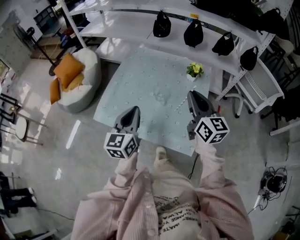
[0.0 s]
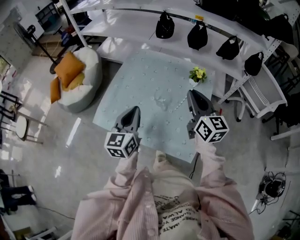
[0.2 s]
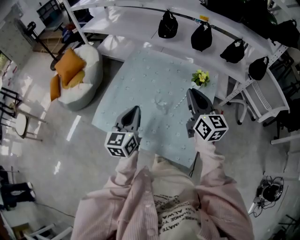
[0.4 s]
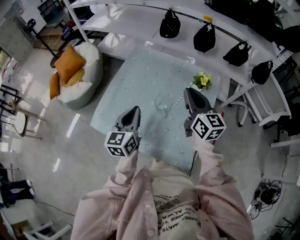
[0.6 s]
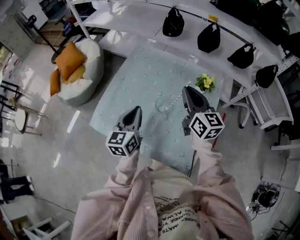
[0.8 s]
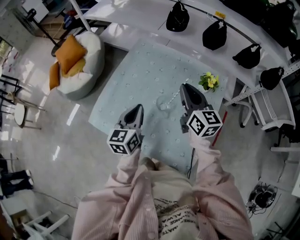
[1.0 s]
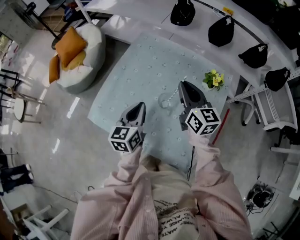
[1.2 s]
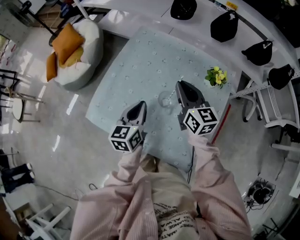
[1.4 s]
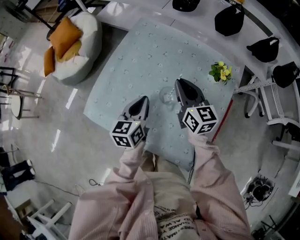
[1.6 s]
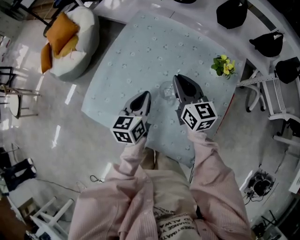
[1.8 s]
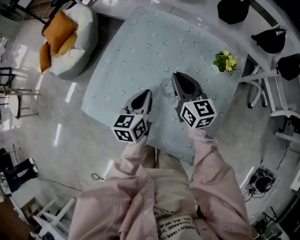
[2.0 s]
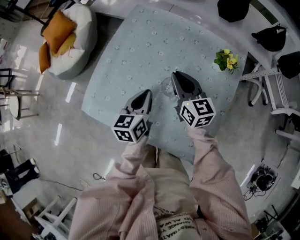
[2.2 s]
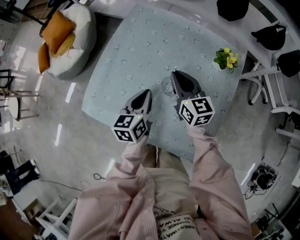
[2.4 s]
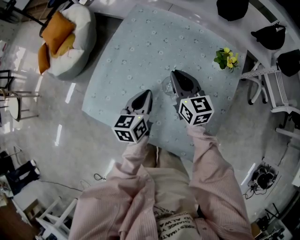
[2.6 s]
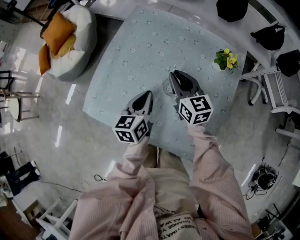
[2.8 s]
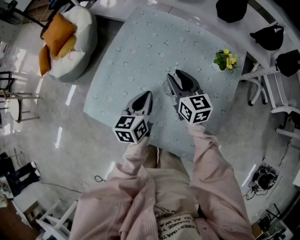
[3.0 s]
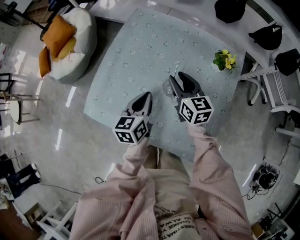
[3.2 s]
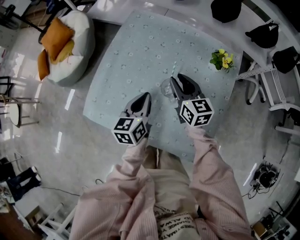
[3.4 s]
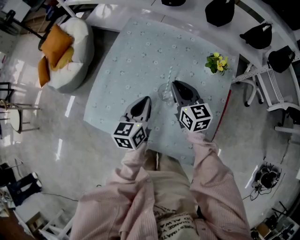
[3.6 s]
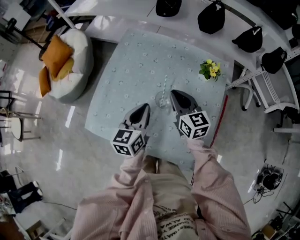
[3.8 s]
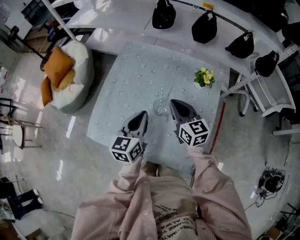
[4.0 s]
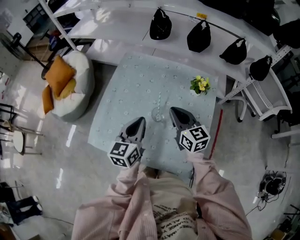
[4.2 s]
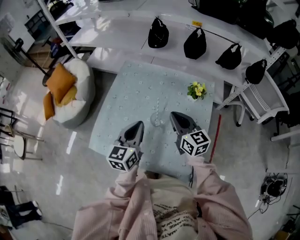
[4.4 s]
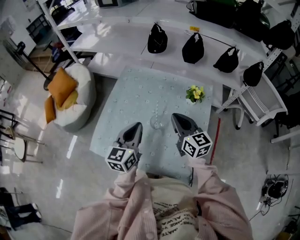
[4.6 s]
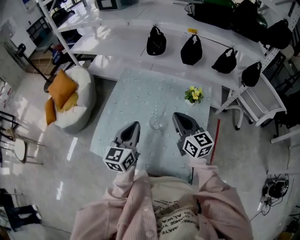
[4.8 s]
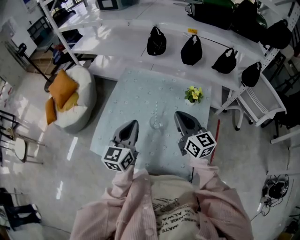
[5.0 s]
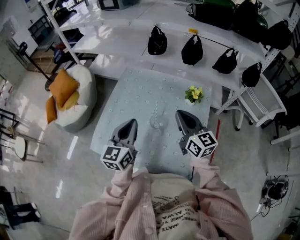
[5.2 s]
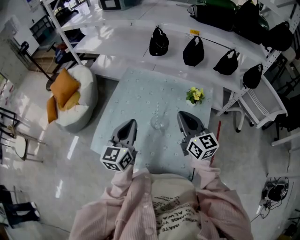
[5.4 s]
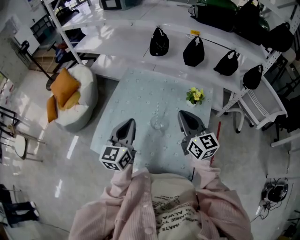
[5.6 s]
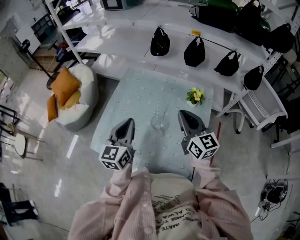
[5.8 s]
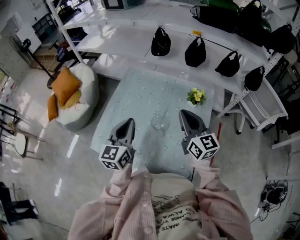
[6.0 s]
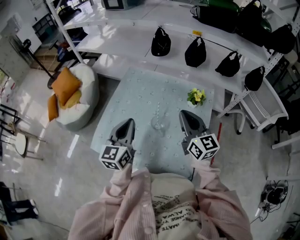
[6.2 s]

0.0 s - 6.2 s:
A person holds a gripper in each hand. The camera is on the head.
0.0 s - 1.6 s: The grippers both shift forward and downward by about 25 cm. The left gripper changes its angle by roughly 20 degrees.
1.6 s - 3.2 s: The right gripper heads downward, covering approximately 5 cm, and opens up.
3.2 s - 4.6 s: The right gripper is displaced upward, backward and to the right by some 15 cm, and closes up. Meanwhile the left gripper travels upward by some 15 cm, and rotates roughly 20 degrees.
4.6 s - 6.2 s: The right gripper moves upward, some 5 cm.

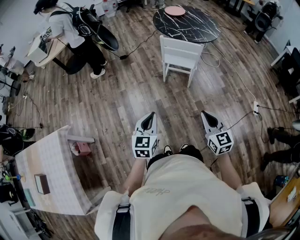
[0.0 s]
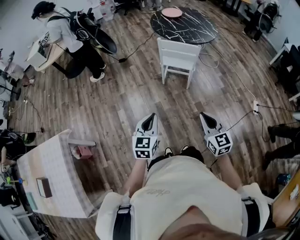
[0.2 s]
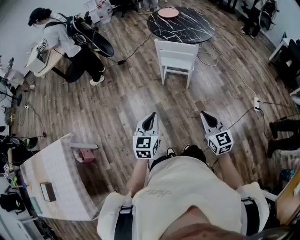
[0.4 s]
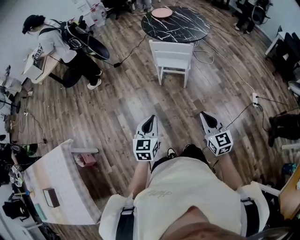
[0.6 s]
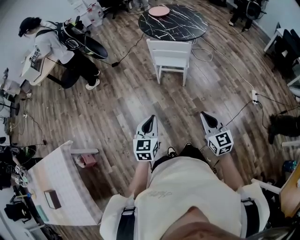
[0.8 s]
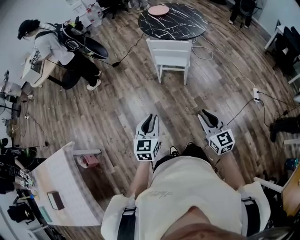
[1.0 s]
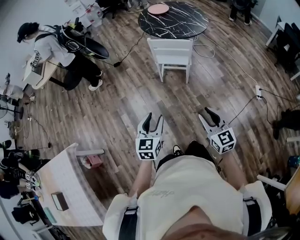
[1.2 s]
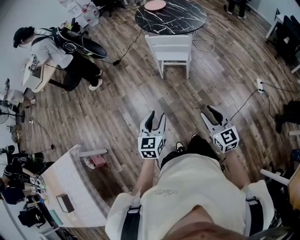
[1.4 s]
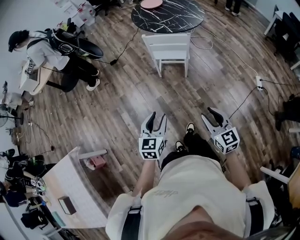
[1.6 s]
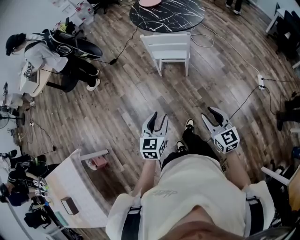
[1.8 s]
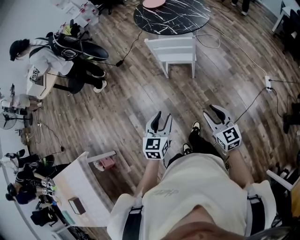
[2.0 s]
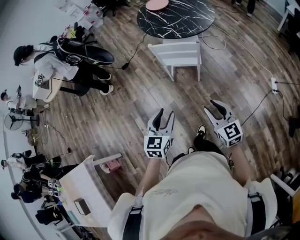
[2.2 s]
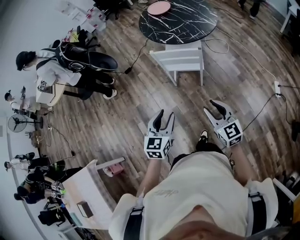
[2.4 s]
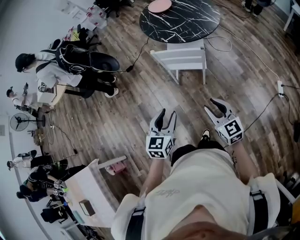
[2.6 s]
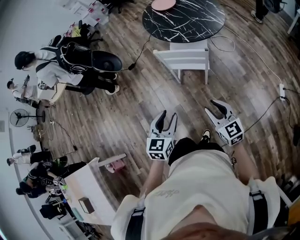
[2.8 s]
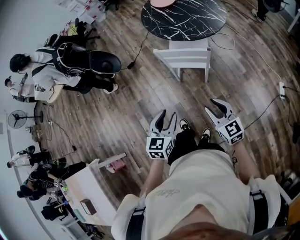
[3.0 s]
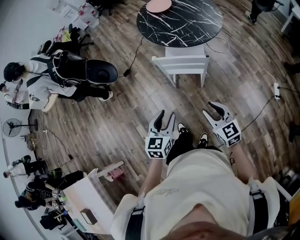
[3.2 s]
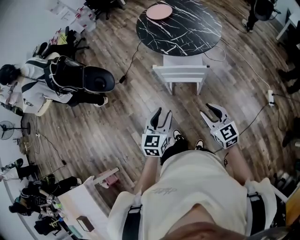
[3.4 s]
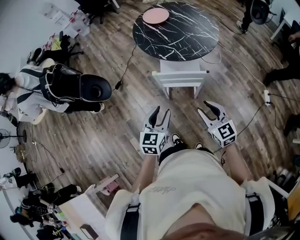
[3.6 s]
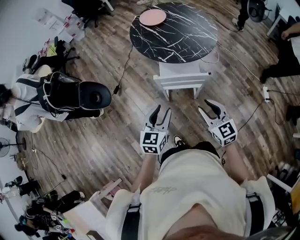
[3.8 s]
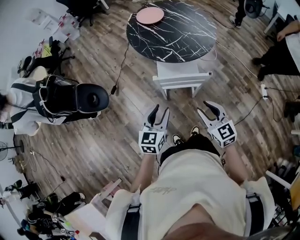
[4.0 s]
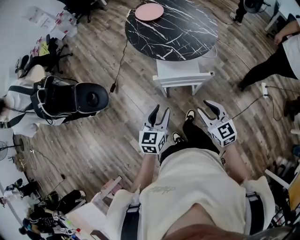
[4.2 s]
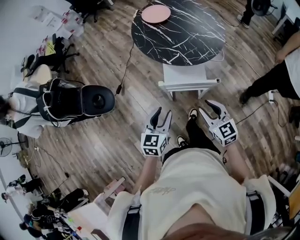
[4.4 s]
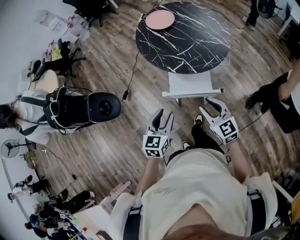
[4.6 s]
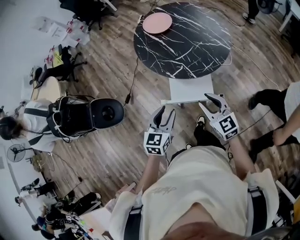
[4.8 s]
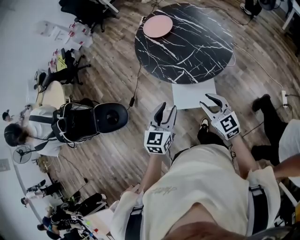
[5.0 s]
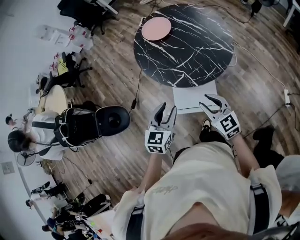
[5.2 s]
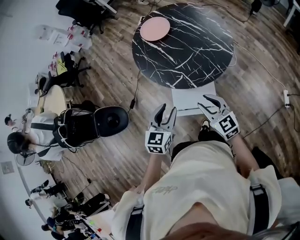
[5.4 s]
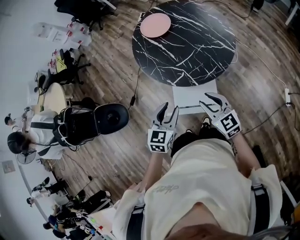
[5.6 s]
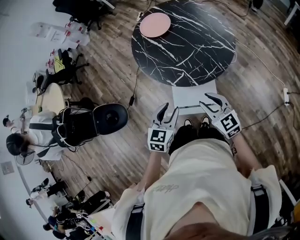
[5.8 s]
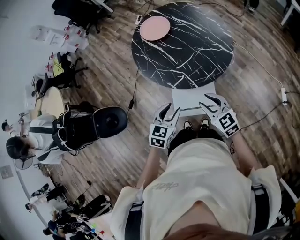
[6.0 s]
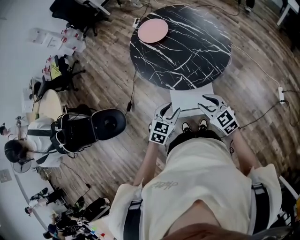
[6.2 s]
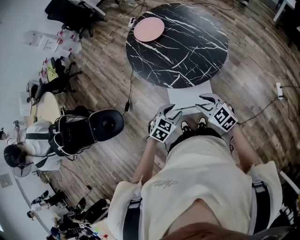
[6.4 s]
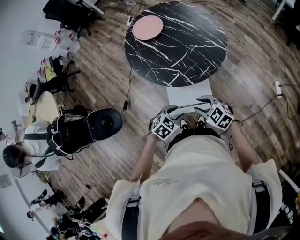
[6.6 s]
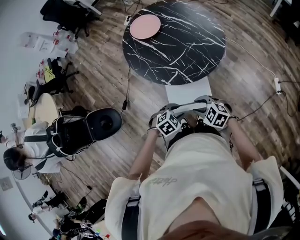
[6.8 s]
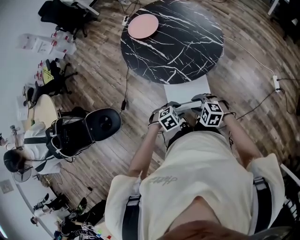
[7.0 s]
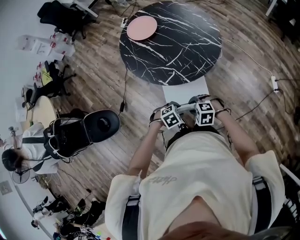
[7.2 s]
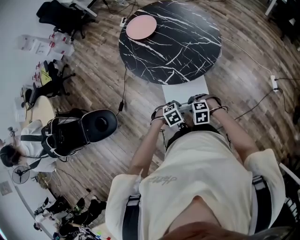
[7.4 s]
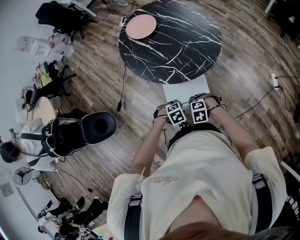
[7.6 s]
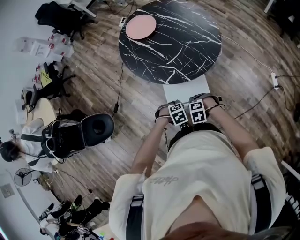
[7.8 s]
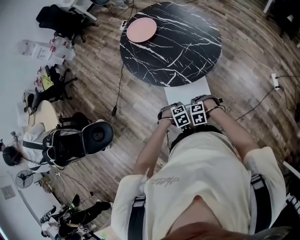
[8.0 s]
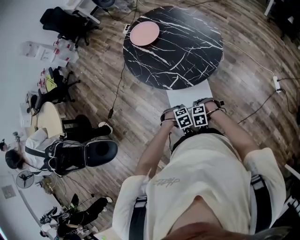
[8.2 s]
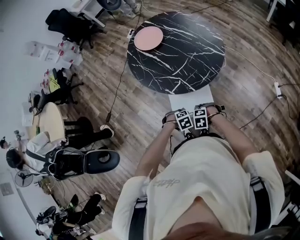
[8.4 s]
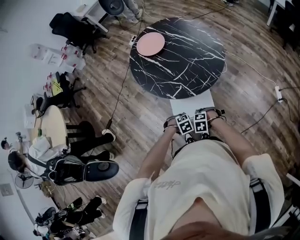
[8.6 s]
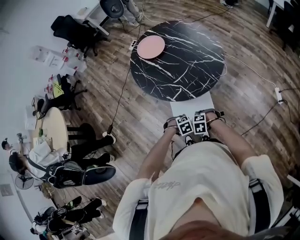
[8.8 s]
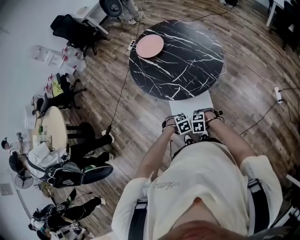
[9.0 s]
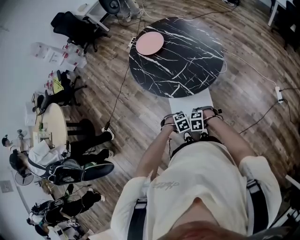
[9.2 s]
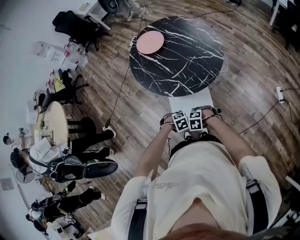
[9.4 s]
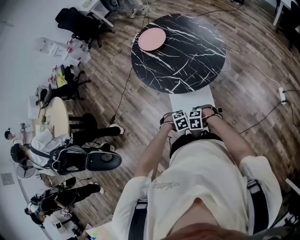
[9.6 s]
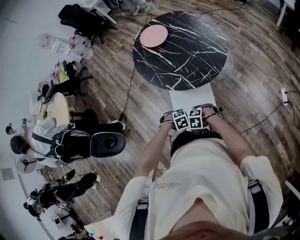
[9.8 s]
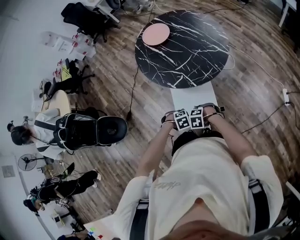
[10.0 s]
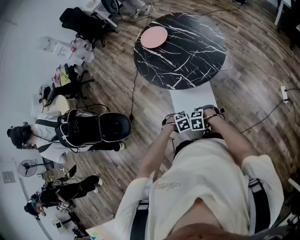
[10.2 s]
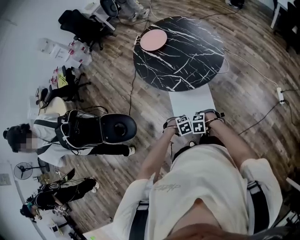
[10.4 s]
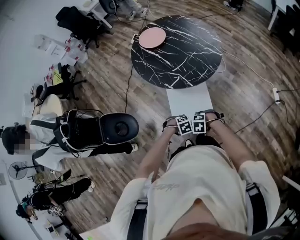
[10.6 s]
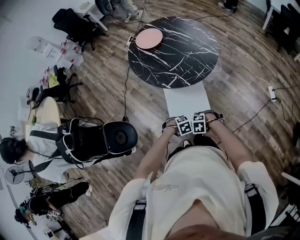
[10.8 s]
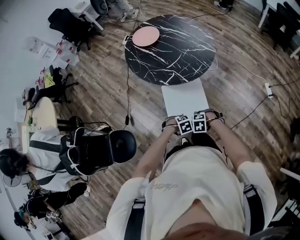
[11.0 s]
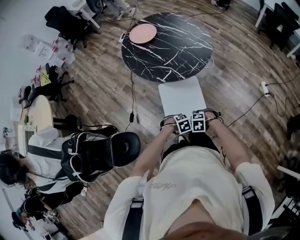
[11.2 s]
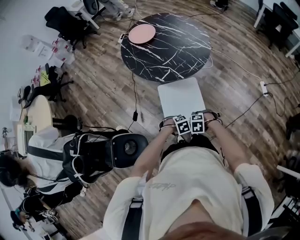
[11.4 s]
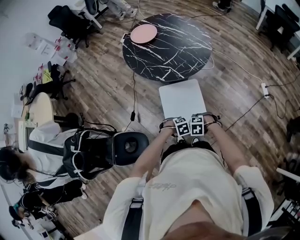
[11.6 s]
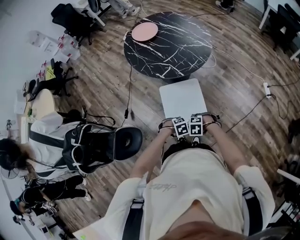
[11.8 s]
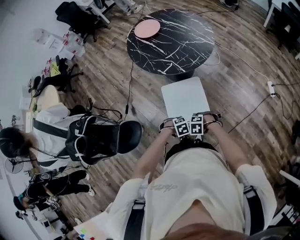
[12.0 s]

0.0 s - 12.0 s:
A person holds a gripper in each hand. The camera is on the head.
0.0 s - 1.6 s: The left gripper shifts roughly 5 cm to the right, and opens up. Meanwhile the right gripper opens up.
1.6 s - 3.0 s: Both grippers move forward, some 25 cm.
3.0 s - 4.4 s: The grippers both shift forward by some 25 cm.
4.4 s - 6.0 s: The right gripper shifts roughly 20 cm forward; the left gripper moves forward and to the right, roughly 20 cm.
6.0 s - 7.6 s: Both grippers move downward, about 20 cm. The left gripper angles its fingers downward, by about 40 degrees. The right gripper points its fingers about 50 degrees further downward.
7.6 s - 9.0 s: There are only small adjustments of the grippers.
9.0 s - 10.4 s: The right gripper ends up some 10 cm from where it was. The left gripper moves about 10 cm.
10.4 s - 12.0 s: The right gripper moves some 15 cm. The left gripper changes place by some 15 cm.

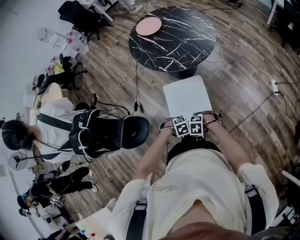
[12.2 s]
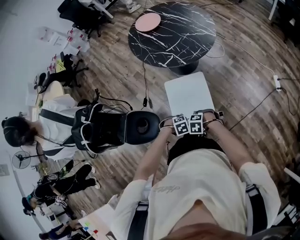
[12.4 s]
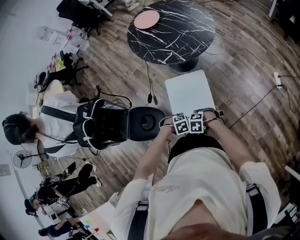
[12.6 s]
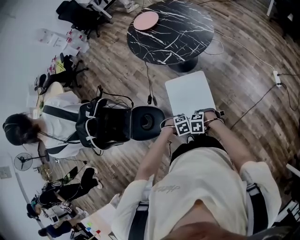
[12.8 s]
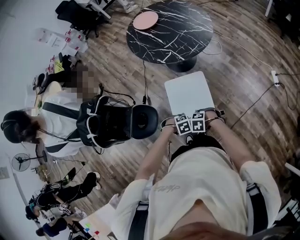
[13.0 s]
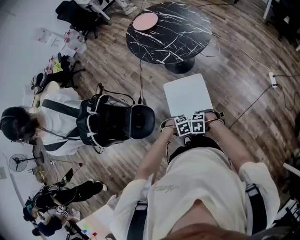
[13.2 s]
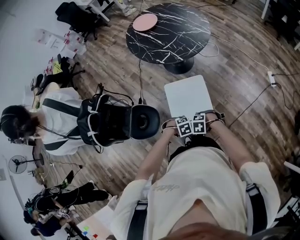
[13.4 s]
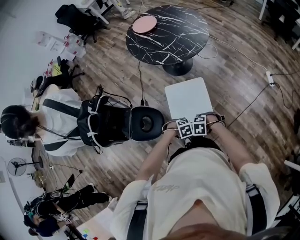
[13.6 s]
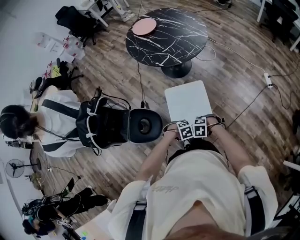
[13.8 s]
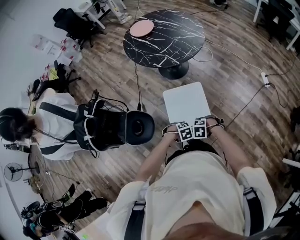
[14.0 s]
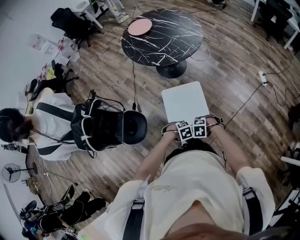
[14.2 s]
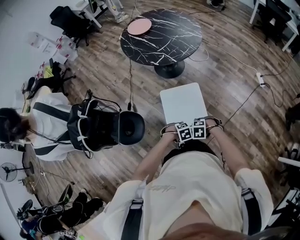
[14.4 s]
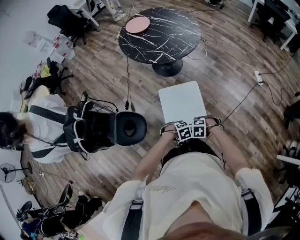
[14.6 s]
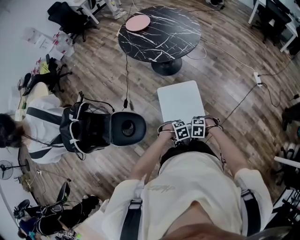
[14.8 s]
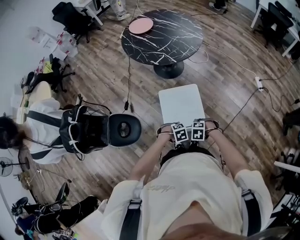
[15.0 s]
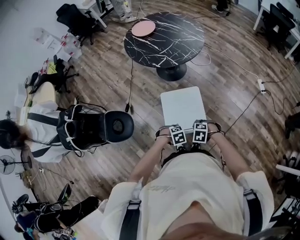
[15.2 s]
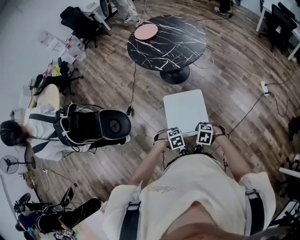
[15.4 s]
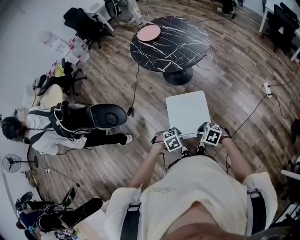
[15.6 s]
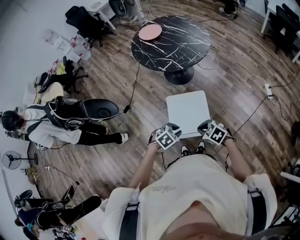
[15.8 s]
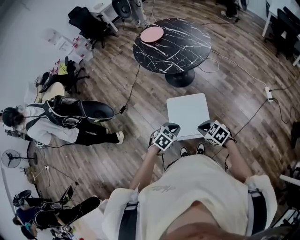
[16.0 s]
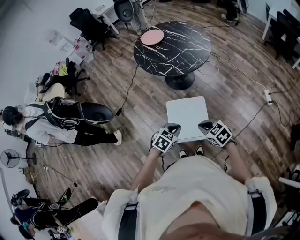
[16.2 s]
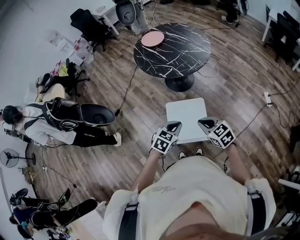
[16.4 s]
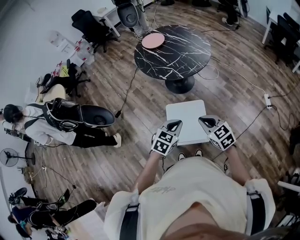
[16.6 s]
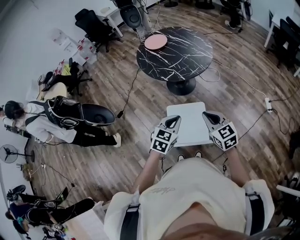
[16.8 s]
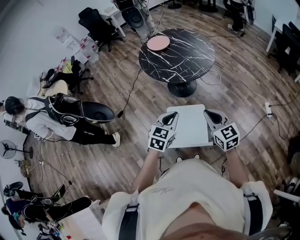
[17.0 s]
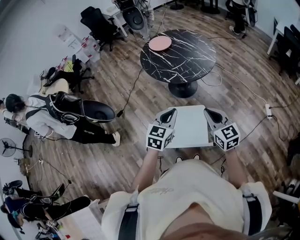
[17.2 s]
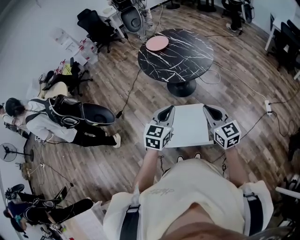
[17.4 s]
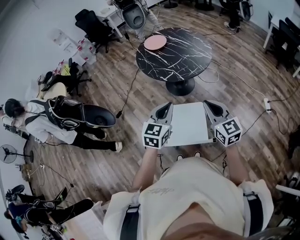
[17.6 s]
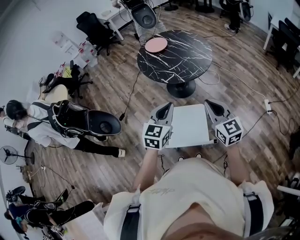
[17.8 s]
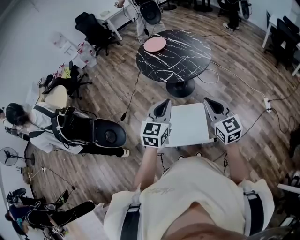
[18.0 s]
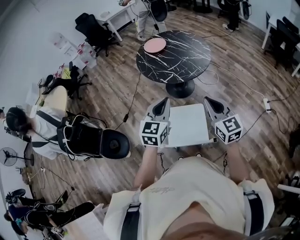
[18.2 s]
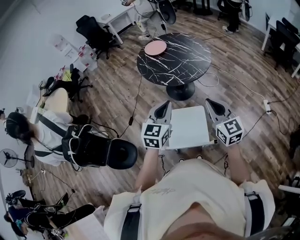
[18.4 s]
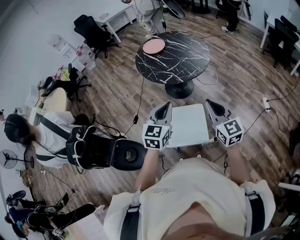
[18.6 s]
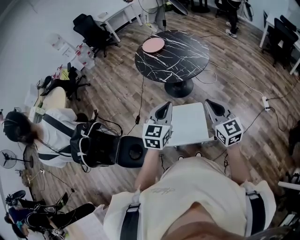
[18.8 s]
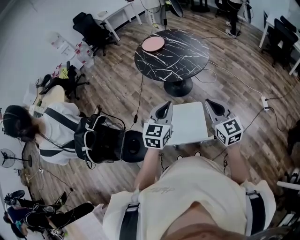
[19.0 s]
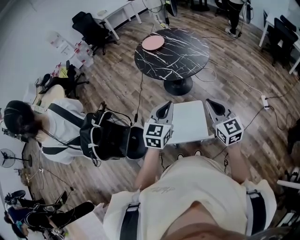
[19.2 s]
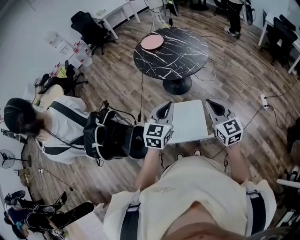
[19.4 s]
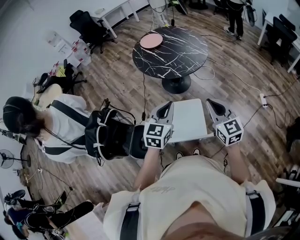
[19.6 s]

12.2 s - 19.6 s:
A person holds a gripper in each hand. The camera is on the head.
12.2 s - 13.6 s: The right gripper shifts by some 10 cm, while the left gripper moves approximately 10 cm.
13.6 s - 15.2 s: The grippers make only small movements.
15.2 s - 16.6 s: The grippers both shift upward by approximately 25 cm. The left gripper angles its fingers upward, by some 40 degrees. Meanwhile the right gripper tilts its fingers roughly 50 degrees upward, and closes.
16.6 s - 18.2 s: Both grippers move upward, approximately 15 cm. The right gripper turns by about 30 degrees. The left gripper swivels some 30 degrees.
18.2 s - 19.6 s: There are only small adjustments of the grippers.
